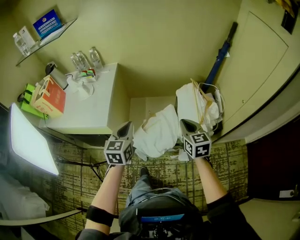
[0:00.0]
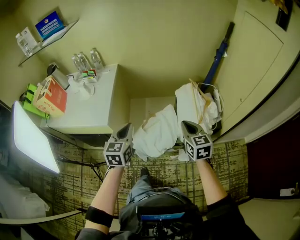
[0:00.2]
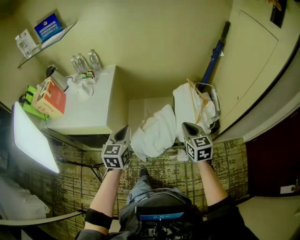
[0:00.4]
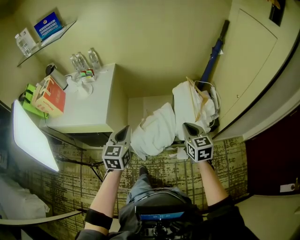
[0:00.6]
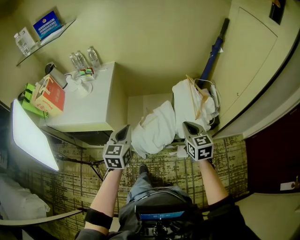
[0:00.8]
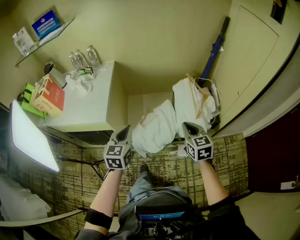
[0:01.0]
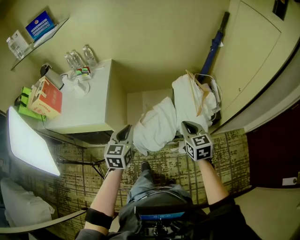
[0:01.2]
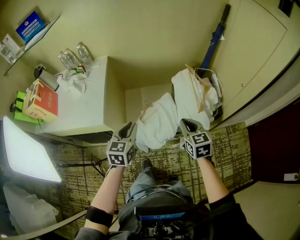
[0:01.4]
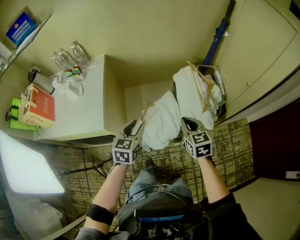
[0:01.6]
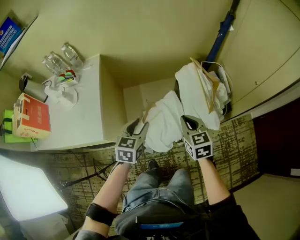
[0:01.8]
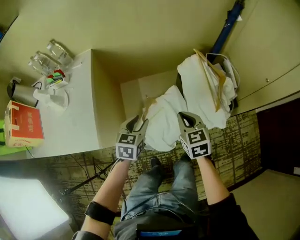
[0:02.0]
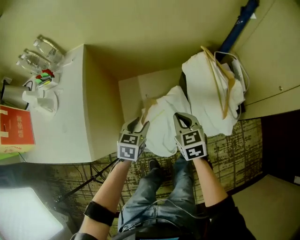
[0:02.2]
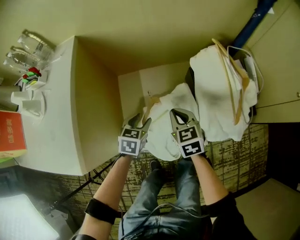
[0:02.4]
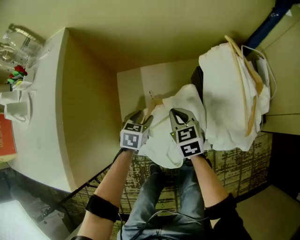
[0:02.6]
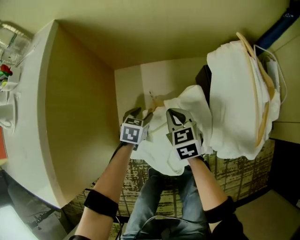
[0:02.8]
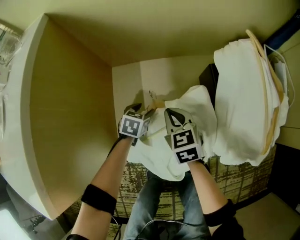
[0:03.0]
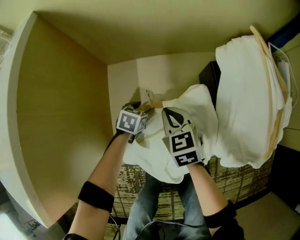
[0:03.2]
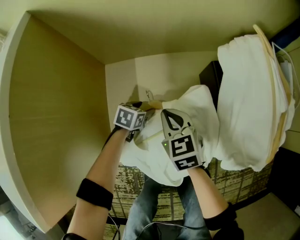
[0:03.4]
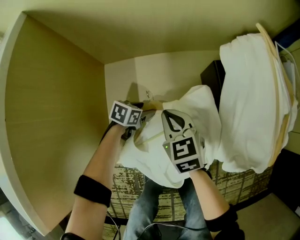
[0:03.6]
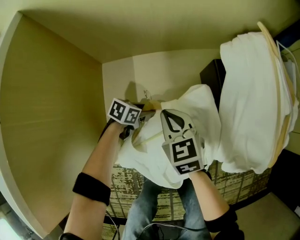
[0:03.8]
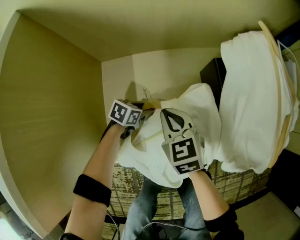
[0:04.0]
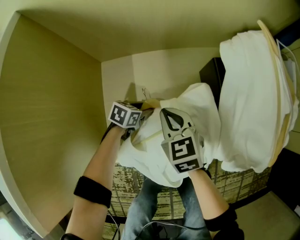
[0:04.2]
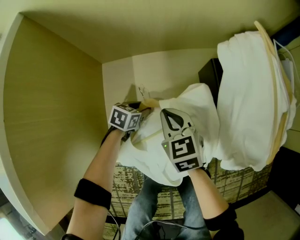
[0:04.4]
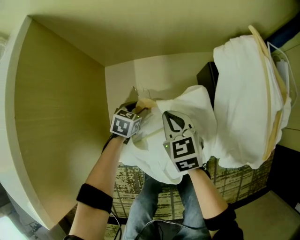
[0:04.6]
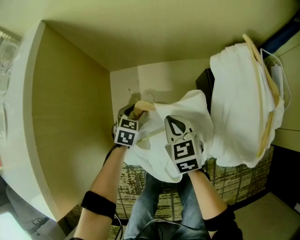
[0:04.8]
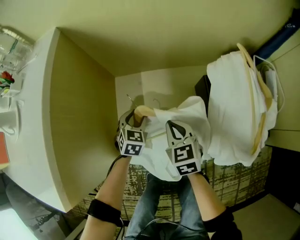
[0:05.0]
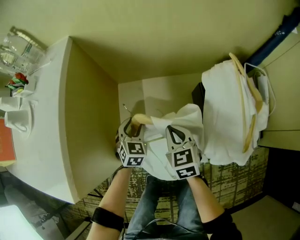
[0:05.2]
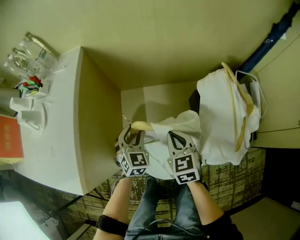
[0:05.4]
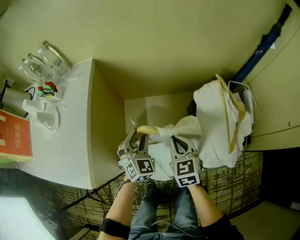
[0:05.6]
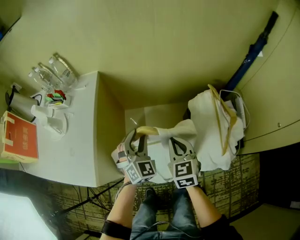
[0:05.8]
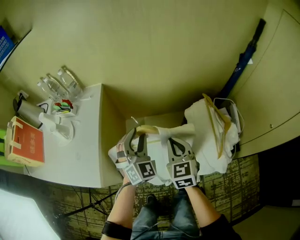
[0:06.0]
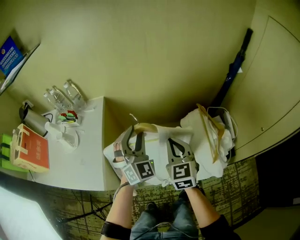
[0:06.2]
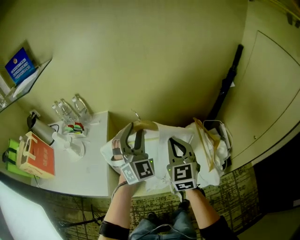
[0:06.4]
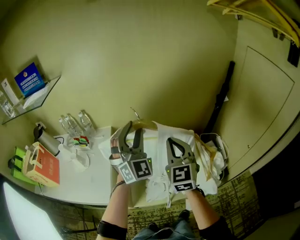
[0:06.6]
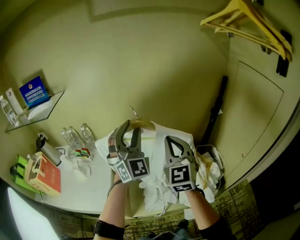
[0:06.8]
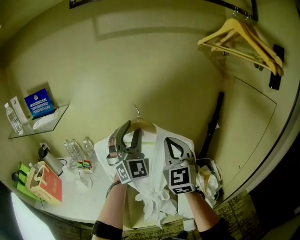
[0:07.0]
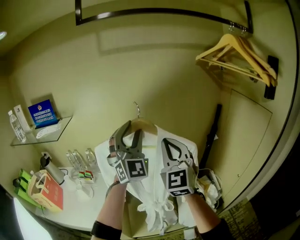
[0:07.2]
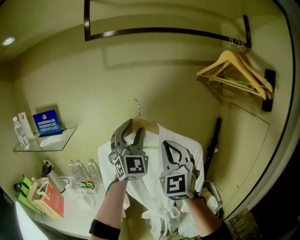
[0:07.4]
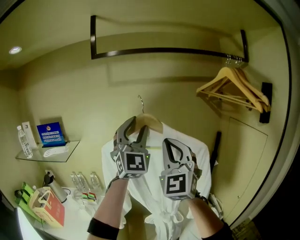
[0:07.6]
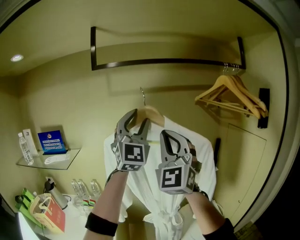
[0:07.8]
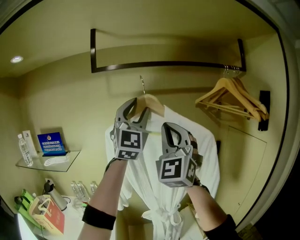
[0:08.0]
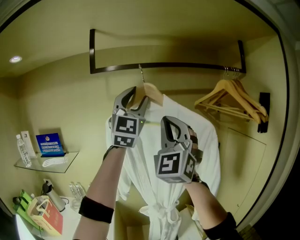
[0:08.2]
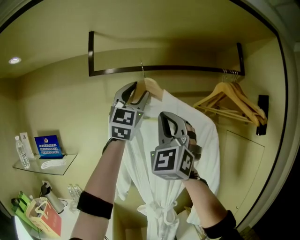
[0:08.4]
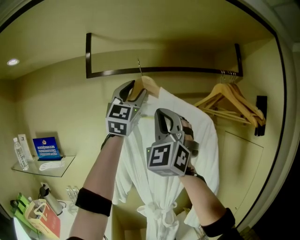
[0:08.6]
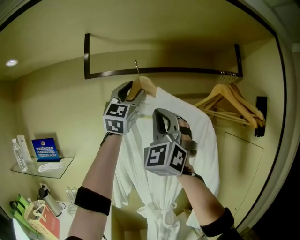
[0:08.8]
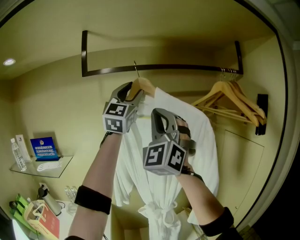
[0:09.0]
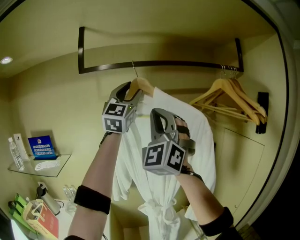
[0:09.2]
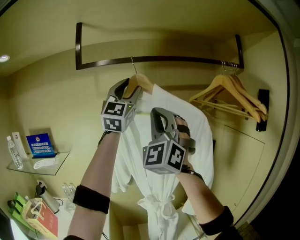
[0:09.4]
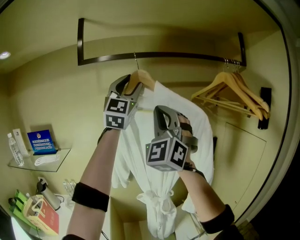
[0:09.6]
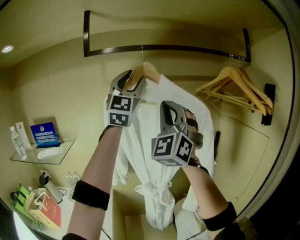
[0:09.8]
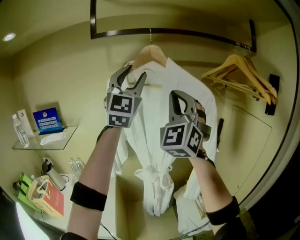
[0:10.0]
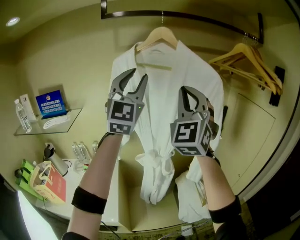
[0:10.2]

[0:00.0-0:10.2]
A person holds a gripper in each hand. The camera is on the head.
0:01.4 to 0:03.0: The right gripper is displaced downward, forward and to the left by some 60 cm. The left gripper moves downward and forward, roughly 70 cm, turns by about 30 degrees, and opens its fingers.
0:03.0 to 0:04.4: The left gripper heads downward, covering roughly 5 cm.
0:04.4 to 0:05.8: Both grippers travel together upward, approximately 40 cm. The left gripper angles its fingers upward, by about 40 degrees.
0:05.8 to 0:07.2: The grippers both shift upward by some 60 cm. The right gripper points its fingers approximately 40 degrees further upward; the left gripper tips its fingers upward by some 40 degrees.
0:07.2 to 0:08.8: Both grippers travel together upward, roughly 30 cm. The left gripper turns by some 30 degrees. Meanwhile the right gripper rotates about 30 degrees.
0:08.8 to 0:10.2: Both grippers move downward, approximately 15 cm.

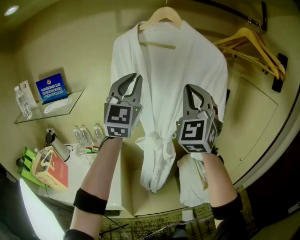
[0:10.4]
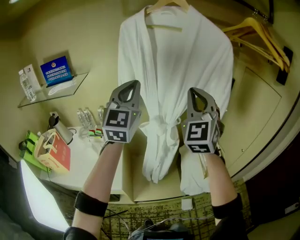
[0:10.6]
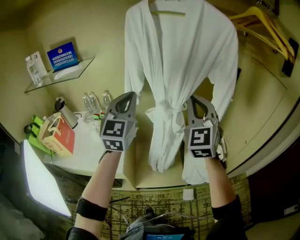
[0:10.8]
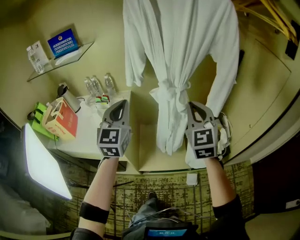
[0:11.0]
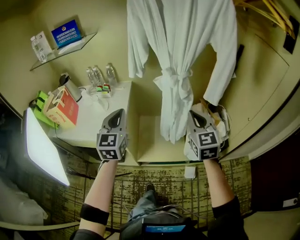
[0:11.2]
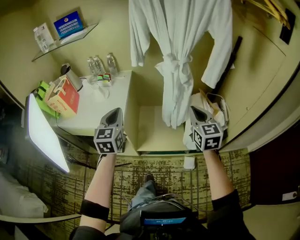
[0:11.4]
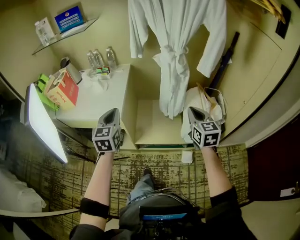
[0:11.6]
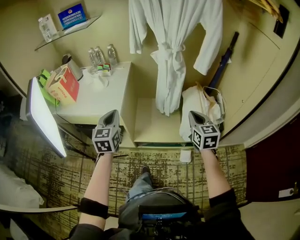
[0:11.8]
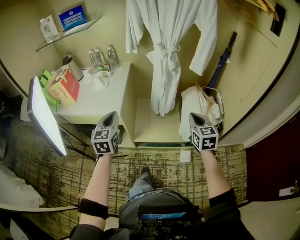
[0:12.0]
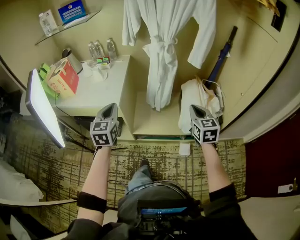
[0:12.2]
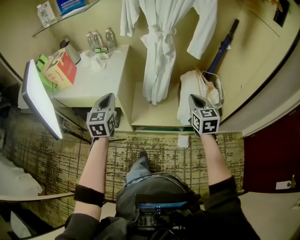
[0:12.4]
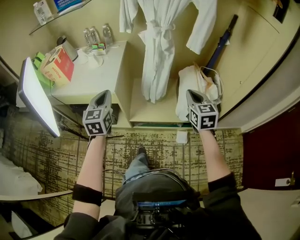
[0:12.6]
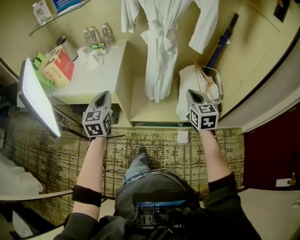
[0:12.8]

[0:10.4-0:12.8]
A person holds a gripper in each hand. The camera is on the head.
0:10.4 to 0:11.6: Both grippers travel together downward and backward, roughly 50 cm. The right gripper tips its fingers downward by about 40 degrees. The left gripper angles its fingers downward, by roughly 40 degrees.
0:11.6 to 0:12.8: The grippers both shift backward by approximately 5 cm.

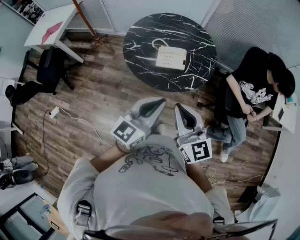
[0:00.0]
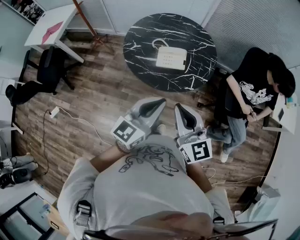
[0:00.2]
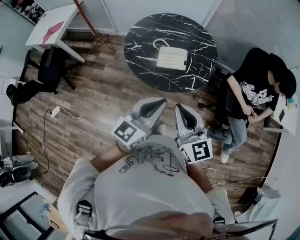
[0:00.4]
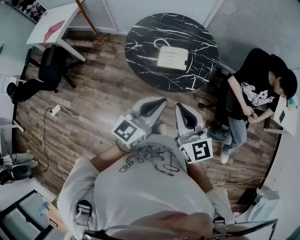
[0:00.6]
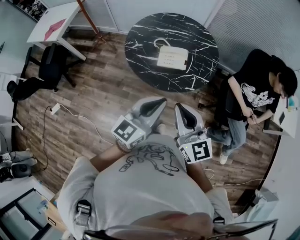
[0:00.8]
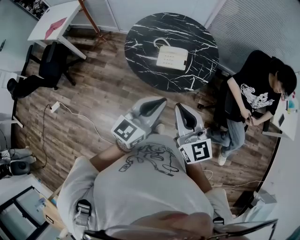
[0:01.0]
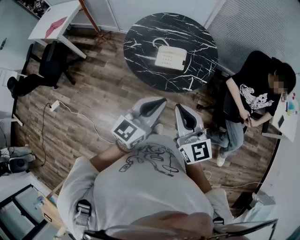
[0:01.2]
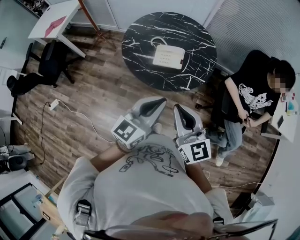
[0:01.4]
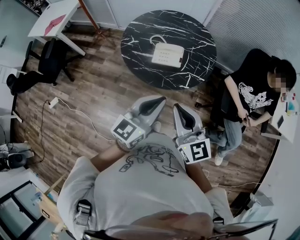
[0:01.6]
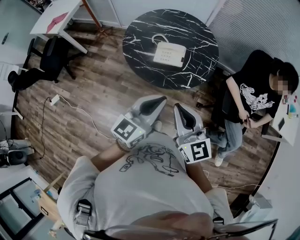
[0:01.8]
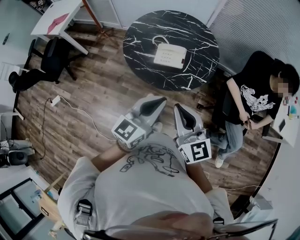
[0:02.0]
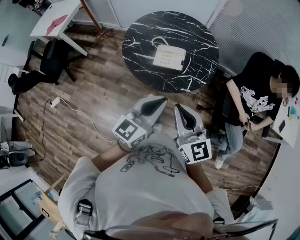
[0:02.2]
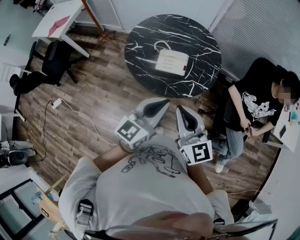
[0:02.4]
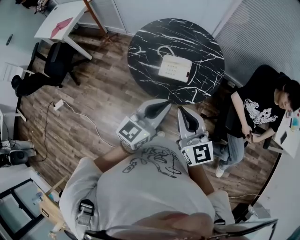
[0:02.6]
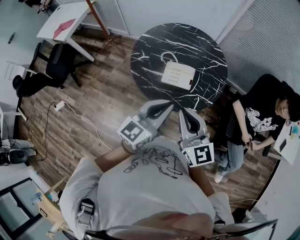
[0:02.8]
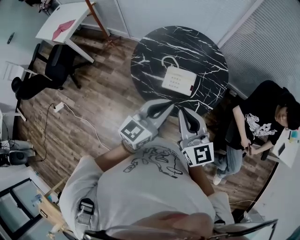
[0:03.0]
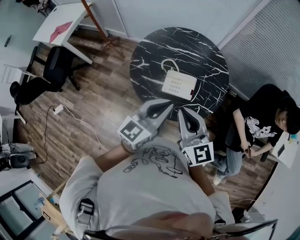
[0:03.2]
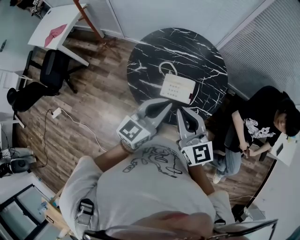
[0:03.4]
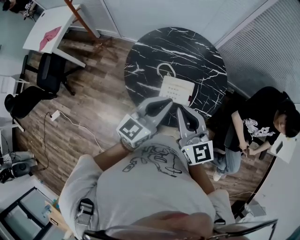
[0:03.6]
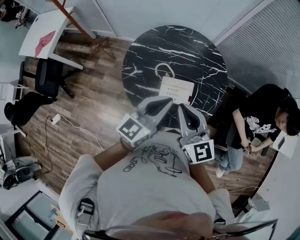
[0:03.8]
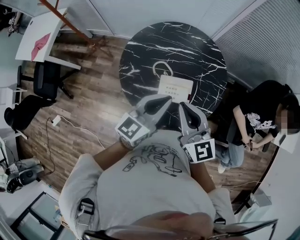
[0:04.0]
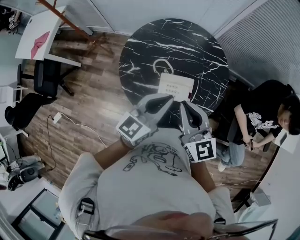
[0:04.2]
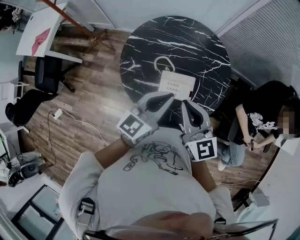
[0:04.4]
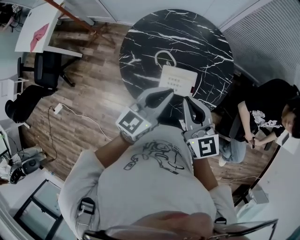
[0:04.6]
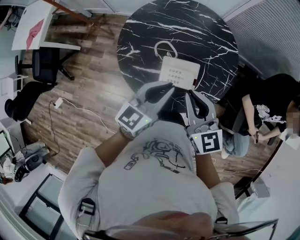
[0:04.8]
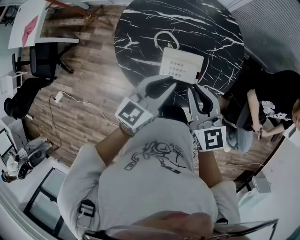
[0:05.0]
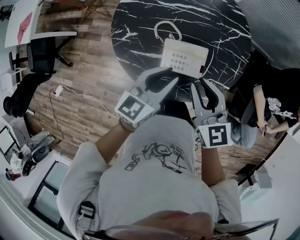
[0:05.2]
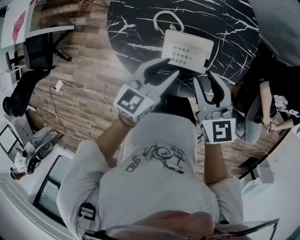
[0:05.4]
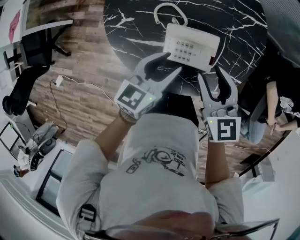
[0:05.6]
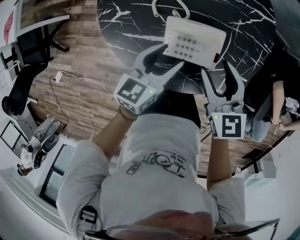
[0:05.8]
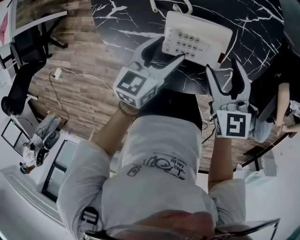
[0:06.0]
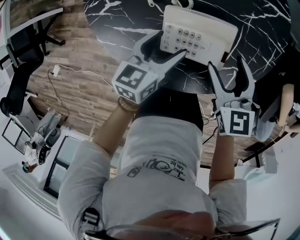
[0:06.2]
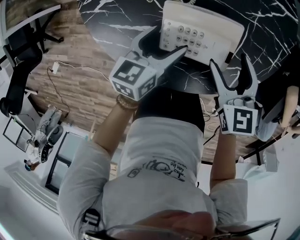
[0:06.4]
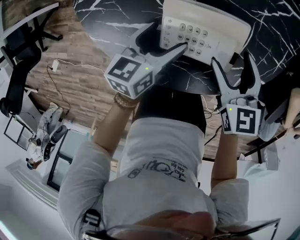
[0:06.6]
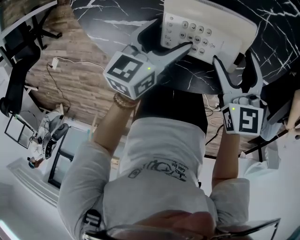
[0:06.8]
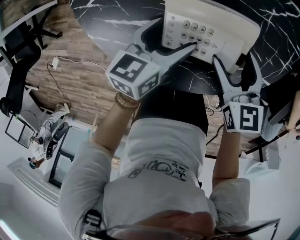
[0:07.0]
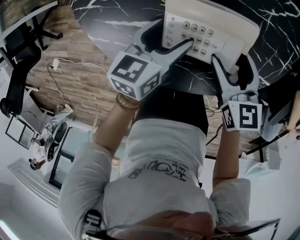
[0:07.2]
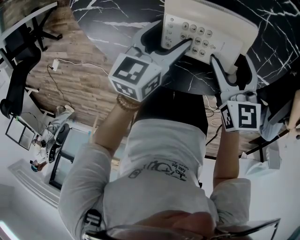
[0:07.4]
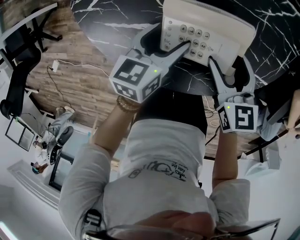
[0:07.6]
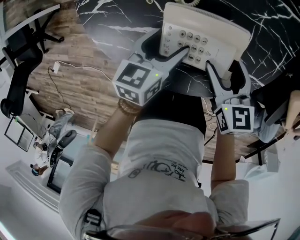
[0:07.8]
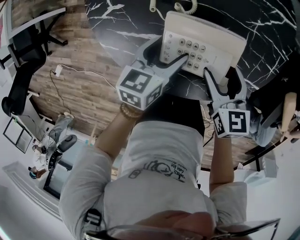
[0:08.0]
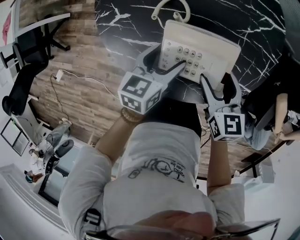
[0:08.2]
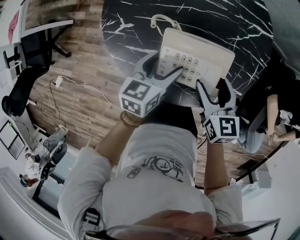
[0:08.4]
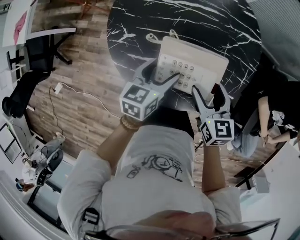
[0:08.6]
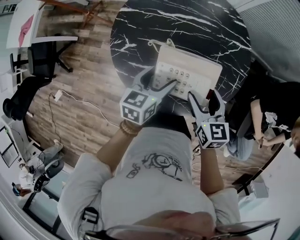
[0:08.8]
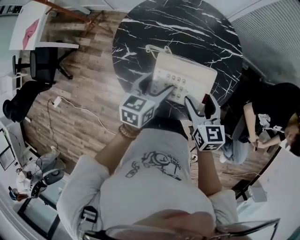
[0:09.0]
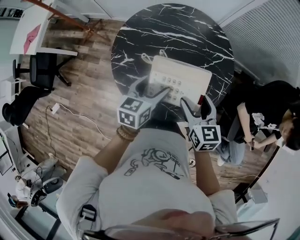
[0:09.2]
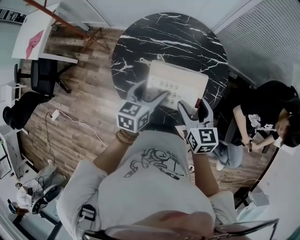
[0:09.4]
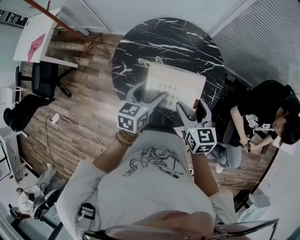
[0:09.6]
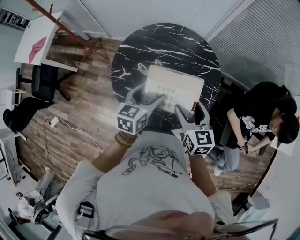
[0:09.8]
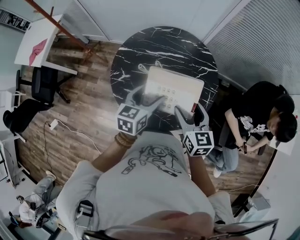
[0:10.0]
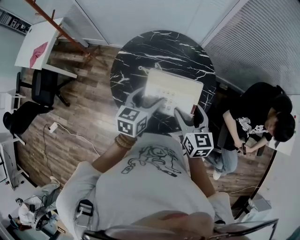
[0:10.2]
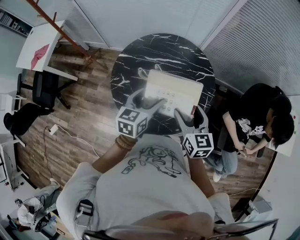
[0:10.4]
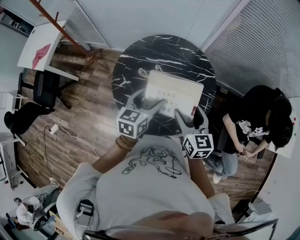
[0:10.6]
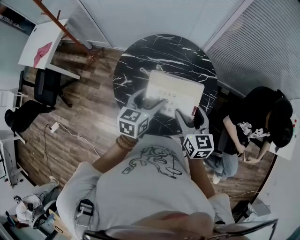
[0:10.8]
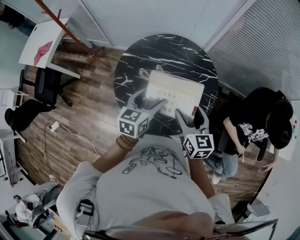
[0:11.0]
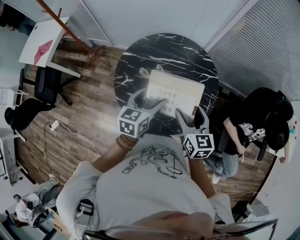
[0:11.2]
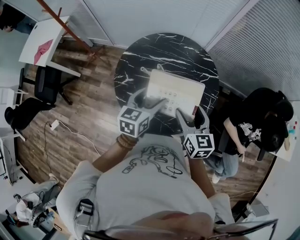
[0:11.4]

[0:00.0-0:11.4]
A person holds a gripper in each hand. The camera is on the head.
0:00.0 to 0:01.4: The grippers both shift to the right by about 5 cm.
0:01.4 to 0:02.8: Both grippers move forward, about 10 cm.
0:02.8 to 0:04.2: Both grippers move forward, approximately 25 cm.
0:04.2 to 0:05.6: Both grippers travel together downward, roughly 25 cm. The left gripper changes its angle by approximately 20 degrees, and opens its fingers. The right gripper opens.
0:05.6 to 0:07.2: The grippers both shift downward by approximately 20 cm. The left gripper opens its fingers; the right gripper opens its fingers.
0:07.2 to 0:08.6: Both grippers travel together upward, roughly 15 cm.
0:08.6 to 0:10.0: Both grippers move upward, about 20 cm.
0:10.0 to 0:11.4: The grippers make only small movements.
